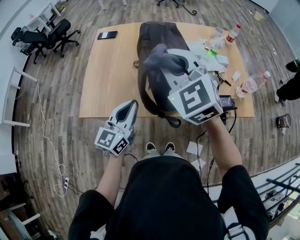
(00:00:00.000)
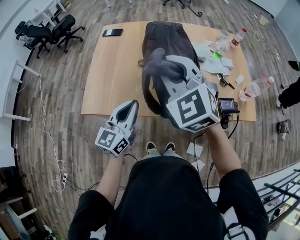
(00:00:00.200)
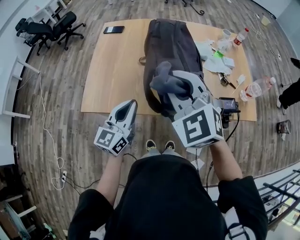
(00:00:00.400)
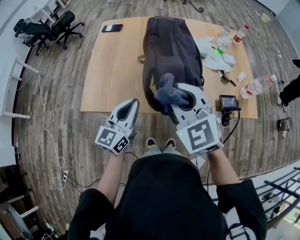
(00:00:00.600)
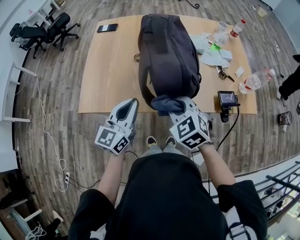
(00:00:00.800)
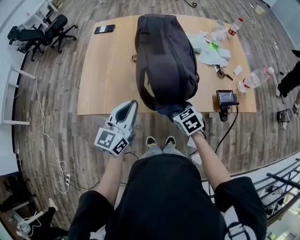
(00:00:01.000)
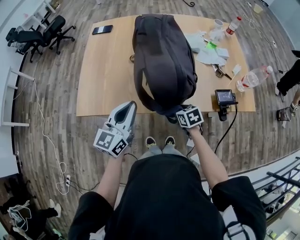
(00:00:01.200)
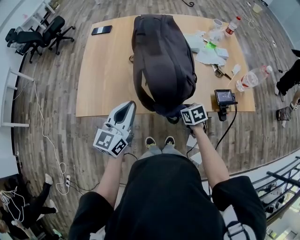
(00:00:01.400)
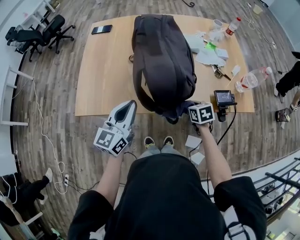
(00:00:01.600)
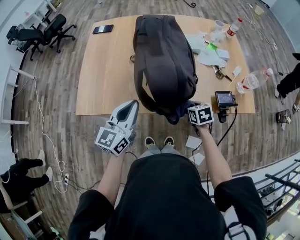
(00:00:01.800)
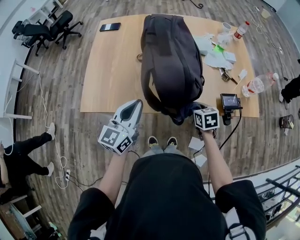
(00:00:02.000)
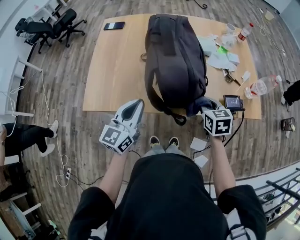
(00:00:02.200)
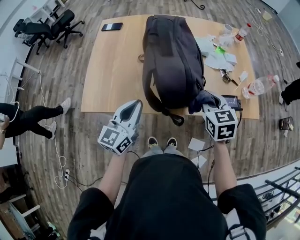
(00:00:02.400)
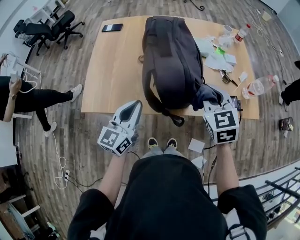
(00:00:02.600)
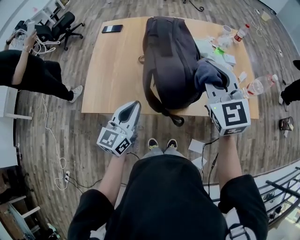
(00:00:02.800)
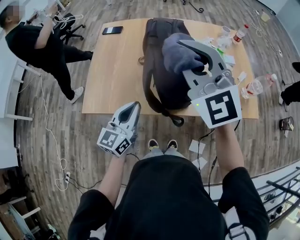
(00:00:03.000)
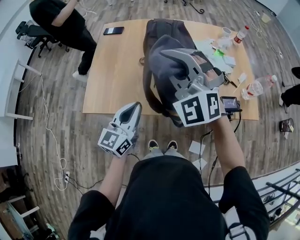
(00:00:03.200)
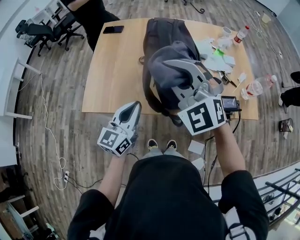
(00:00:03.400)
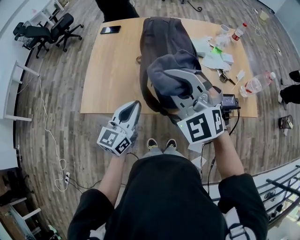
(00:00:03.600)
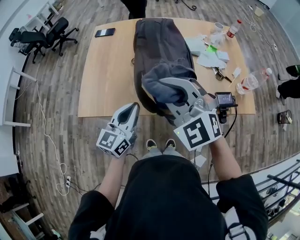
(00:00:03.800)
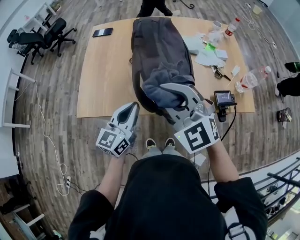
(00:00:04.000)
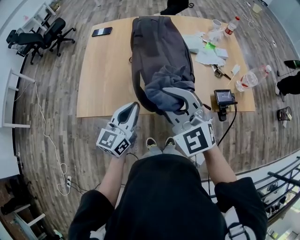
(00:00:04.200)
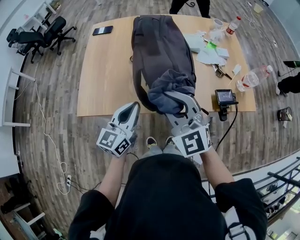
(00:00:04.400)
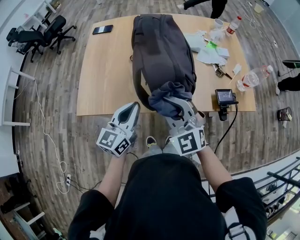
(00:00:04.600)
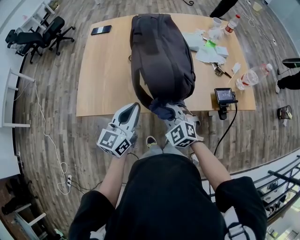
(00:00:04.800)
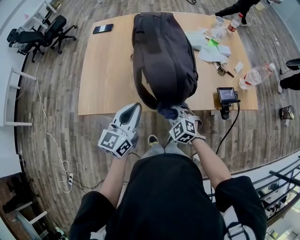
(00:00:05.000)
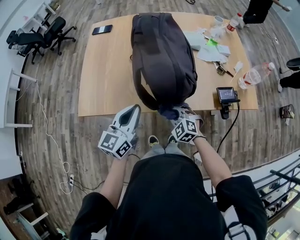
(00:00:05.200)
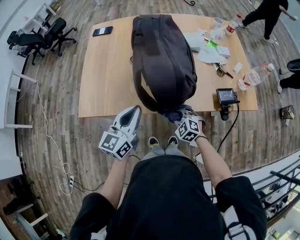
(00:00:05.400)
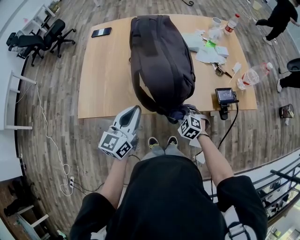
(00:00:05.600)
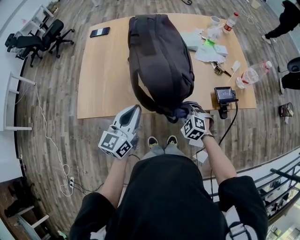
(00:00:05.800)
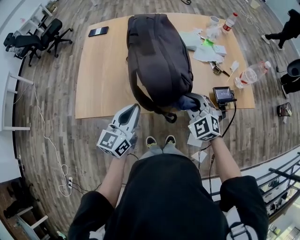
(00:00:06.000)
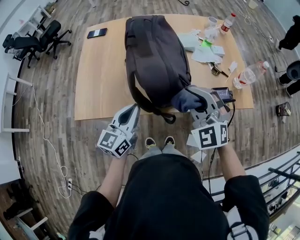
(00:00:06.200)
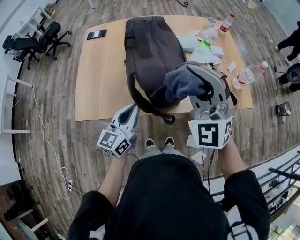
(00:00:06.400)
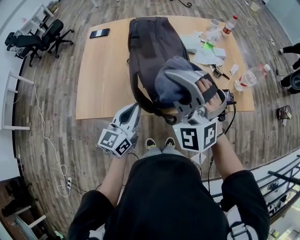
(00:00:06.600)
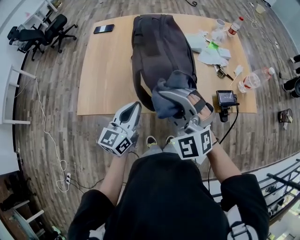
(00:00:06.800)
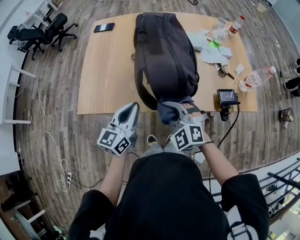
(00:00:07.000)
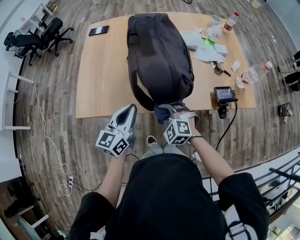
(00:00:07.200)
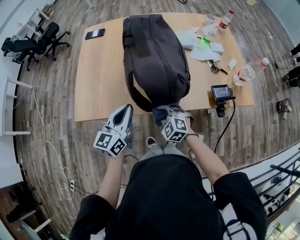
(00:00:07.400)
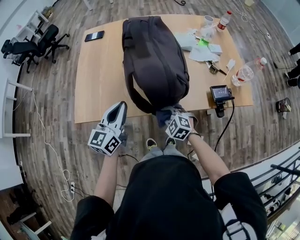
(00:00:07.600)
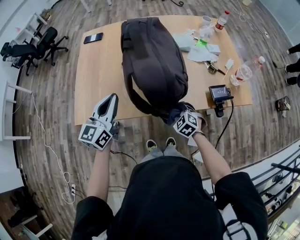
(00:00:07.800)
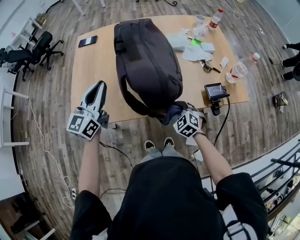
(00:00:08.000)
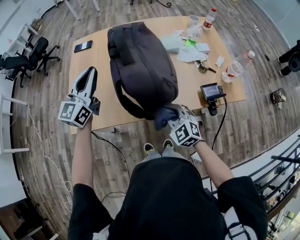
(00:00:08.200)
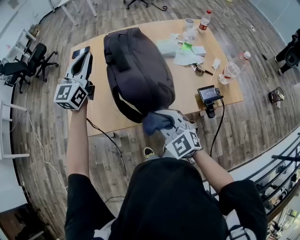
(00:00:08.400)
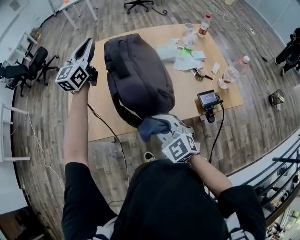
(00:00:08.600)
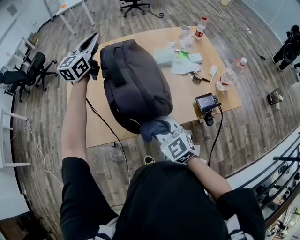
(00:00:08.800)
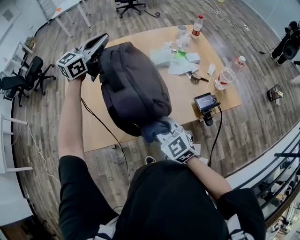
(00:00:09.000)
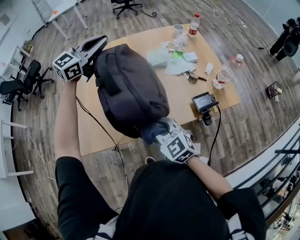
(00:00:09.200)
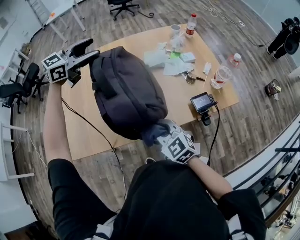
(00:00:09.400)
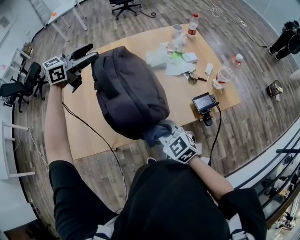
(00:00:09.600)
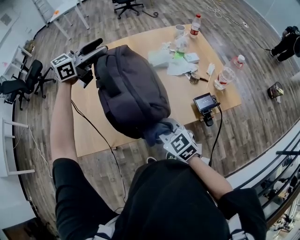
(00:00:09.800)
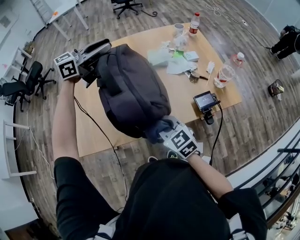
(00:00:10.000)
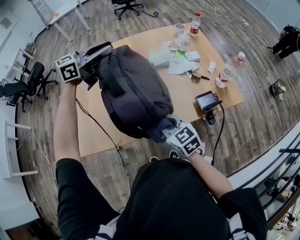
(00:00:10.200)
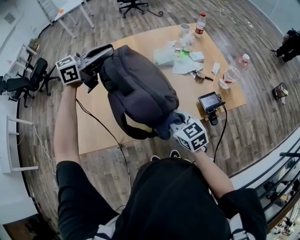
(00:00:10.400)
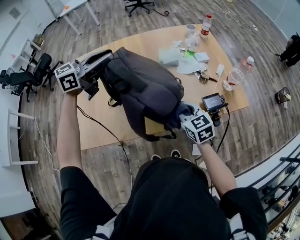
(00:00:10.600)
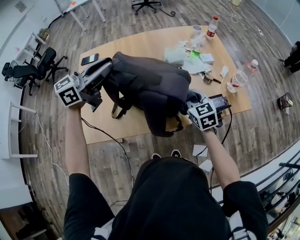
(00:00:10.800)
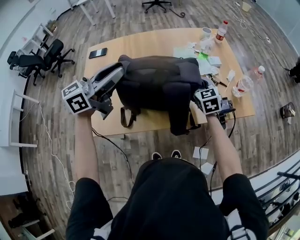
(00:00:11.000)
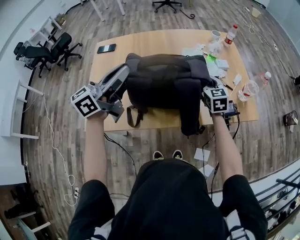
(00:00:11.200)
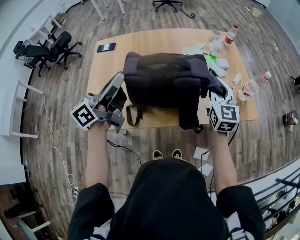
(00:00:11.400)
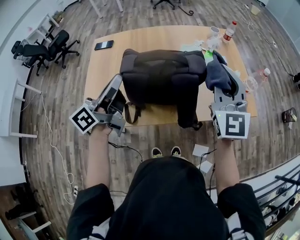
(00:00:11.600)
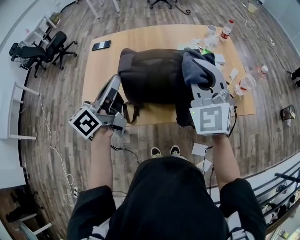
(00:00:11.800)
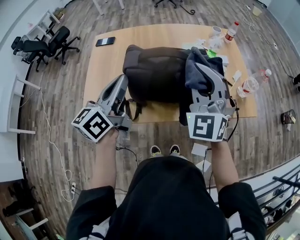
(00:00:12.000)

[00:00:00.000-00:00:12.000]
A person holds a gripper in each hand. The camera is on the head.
00:00:00.000 to 00:00:01.600: The right gripper goes about 40 cm downward and to the right, and points its fingers some 40 degrees further downward.
00:00:01.600 to 00:00:03.000: The right gripper shifts roughly 40 cm upward, and points its fingers some 50 degrees further upward.
00:00:03.000 to 00:00:04.400: The right gripper shifts roughly 15 cm downward and backward.
00:00:04.400 to 00:00:06.000: The right gripper is displaced downward and to the right by roughly 20 cm, and swivels approximately 30 degrees.
00:00:06.000 to 00:00:07.600: The right gripper heads downward and to the left, covering roughly 15 cm, and rotates roughly 20 degrees.
00:00:07.600 to 00:00:09.000: The left gripper heads forward and upward, covering about 35 cm, and swivels some 30 degrees. Meanwhile the right gripper travels upward by some 20 cm, and turns by approximately 30 degrees.
00:00:09.000 to 00:00:10.400: The left gripper moves roughly 5 cm, turns by about 20 degrees, and opens its fingers. Meanwhile the right gripper changes place by about 5 cm, and swivels some 20 degrees.
00:00:10.400 to 00:00:12.000: The left gripper goes roughly 20 cm backward, changes its angle by about 50 degrees, and closes. Meanwhile the right gripper shifts about 20 cm upward, and rotates around the line of its fingers by roughly 50 degrees, counterclockwise from behind.

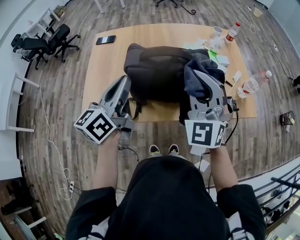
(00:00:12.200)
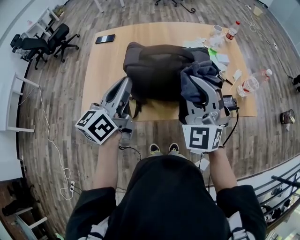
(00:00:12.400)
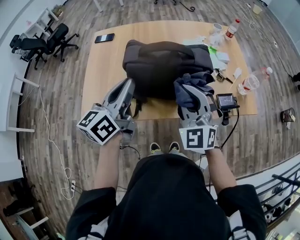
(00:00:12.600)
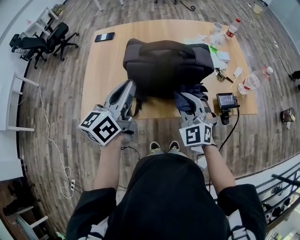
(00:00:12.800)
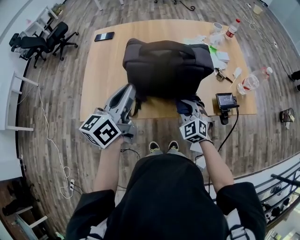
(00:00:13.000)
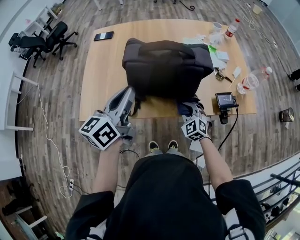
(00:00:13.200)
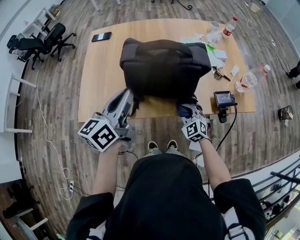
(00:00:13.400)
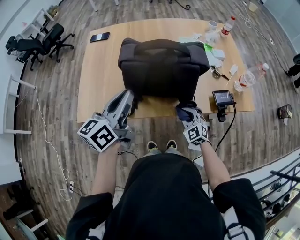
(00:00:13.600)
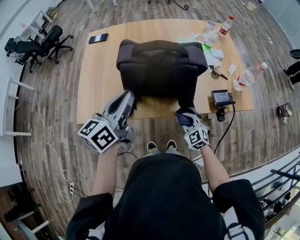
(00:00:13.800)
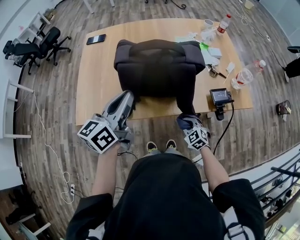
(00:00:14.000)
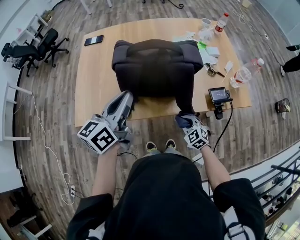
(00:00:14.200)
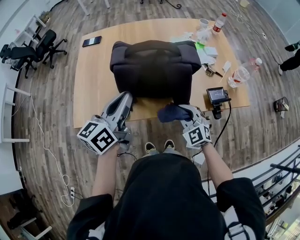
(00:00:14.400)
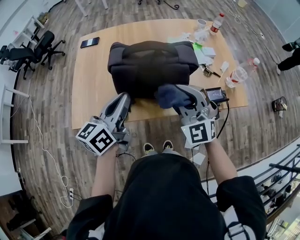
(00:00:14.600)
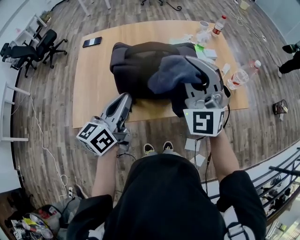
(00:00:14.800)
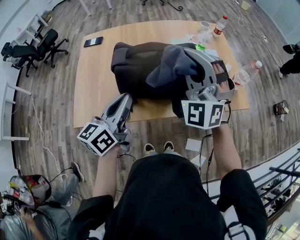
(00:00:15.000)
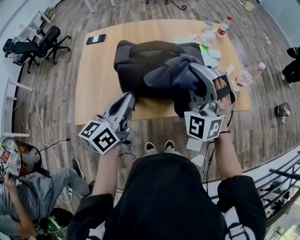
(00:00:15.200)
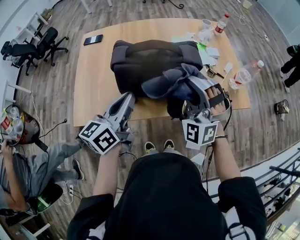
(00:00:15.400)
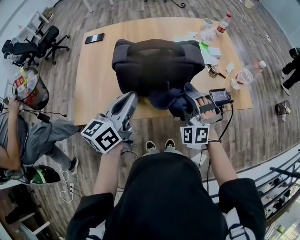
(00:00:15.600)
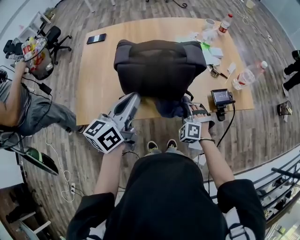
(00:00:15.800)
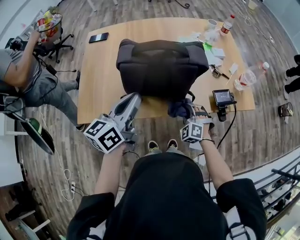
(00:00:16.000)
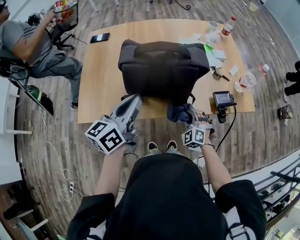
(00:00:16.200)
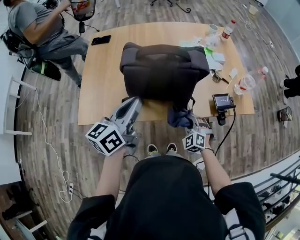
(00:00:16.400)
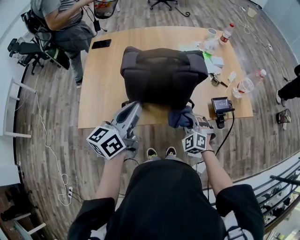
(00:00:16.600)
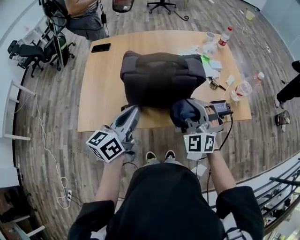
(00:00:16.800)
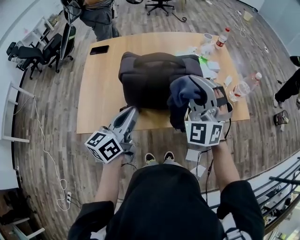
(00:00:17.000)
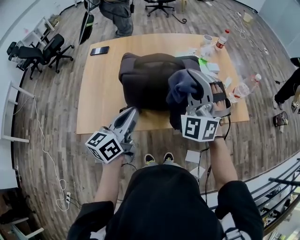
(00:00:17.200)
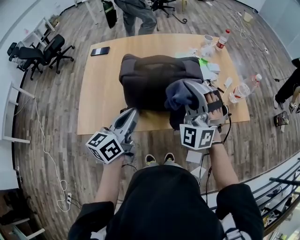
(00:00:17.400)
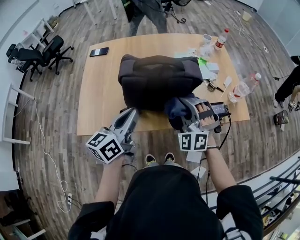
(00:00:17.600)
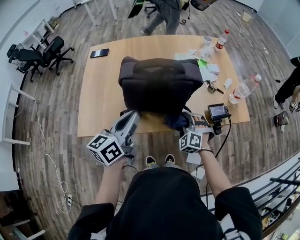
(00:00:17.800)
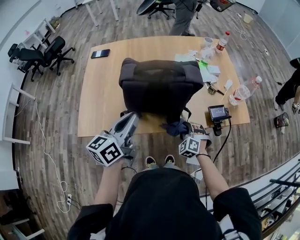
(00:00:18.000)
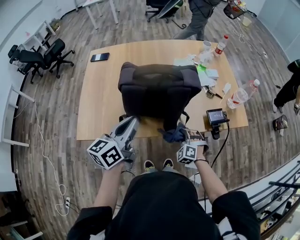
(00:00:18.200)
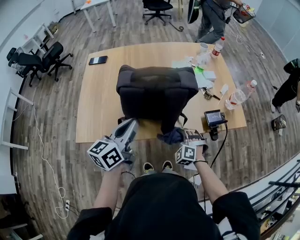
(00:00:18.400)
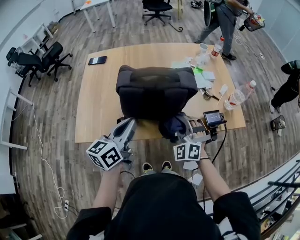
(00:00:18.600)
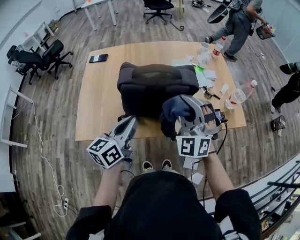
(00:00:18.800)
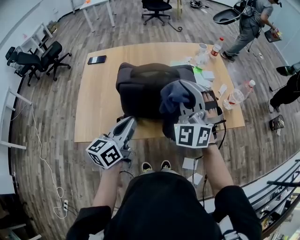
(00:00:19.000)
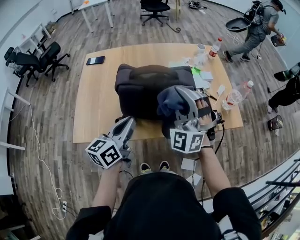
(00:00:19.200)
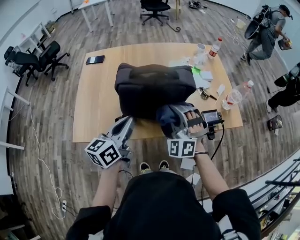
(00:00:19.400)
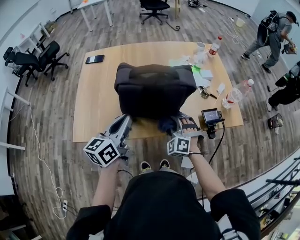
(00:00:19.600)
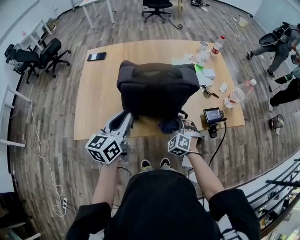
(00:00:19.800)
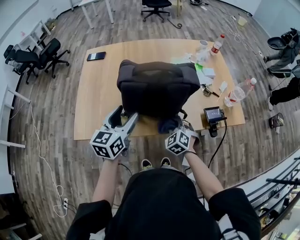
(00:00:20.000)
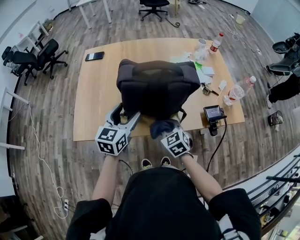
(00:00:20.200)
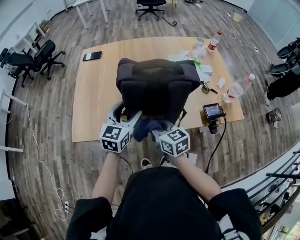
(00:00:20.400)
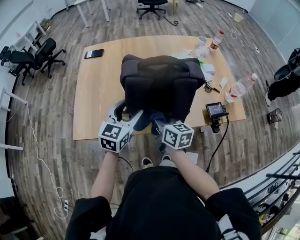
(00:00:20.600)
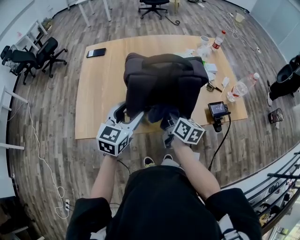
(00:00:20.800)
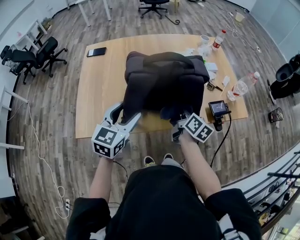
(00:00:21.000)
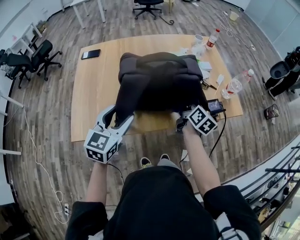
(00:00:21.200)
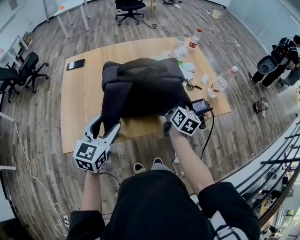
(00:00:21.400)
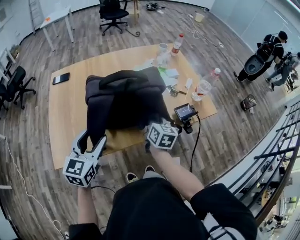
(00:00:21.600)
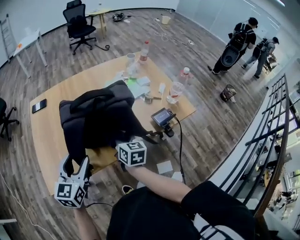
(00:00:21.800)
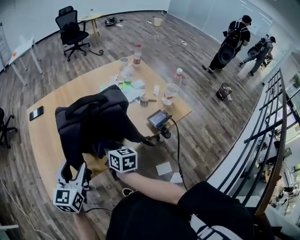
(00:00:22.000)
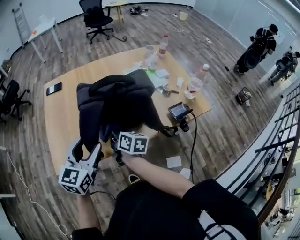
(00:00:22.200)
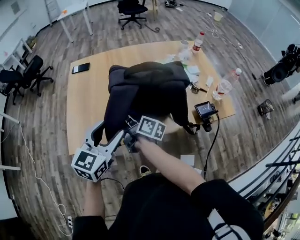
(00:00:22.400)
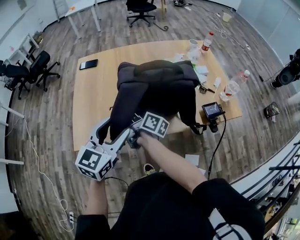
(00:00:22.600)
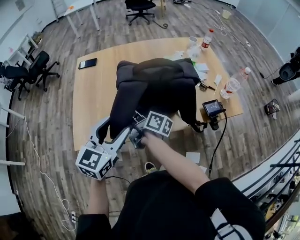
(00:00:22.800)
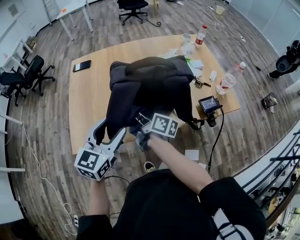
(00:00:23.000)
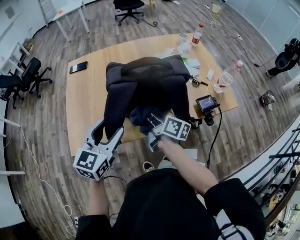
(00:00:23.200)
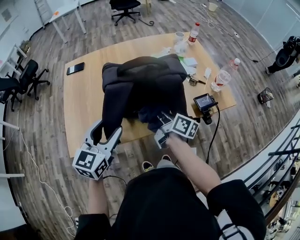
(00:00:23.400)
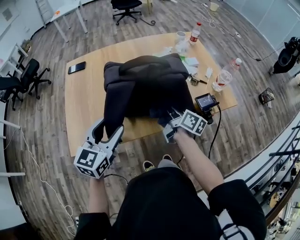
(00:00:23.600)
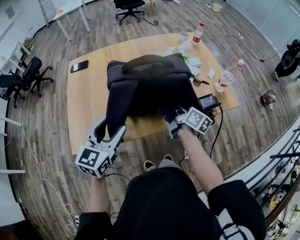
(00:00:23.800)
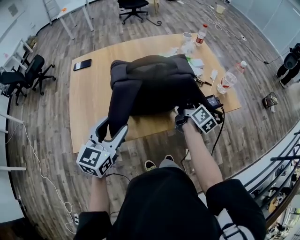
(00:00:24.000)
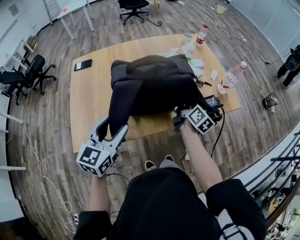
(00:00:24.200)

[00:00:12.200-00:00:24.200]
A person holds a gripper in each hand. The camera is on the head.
00:00:12.200 to 00:00:13.800: The left gripper moves downward, approximately 5 cm. The right gripper shifts about 35 cm downward, and angles its fingers downward, by some 30 degrees.
00:00:13.800 to 00:00:15.200: The right gripper moves upward, roughly 35 cm, and points its fingers some 40 degrees further upward.
00:00:15.200 to 00:00:16.600: The right gripper moves downward, approximately 30 cm, and angles its fingers downward, by some 40 degrees.
00:00:16.600 to 00:00:18.200: The right gripper goes upward and returns, roughly 30 cm each way.
00:00:18.200 to 00:00:19.800: The right gripper travels upward and back again, roughly 40 cm each way.
00:00:19.800 to 00:00:21.200: The left gripper turns by about 30 degrees, and opens its fingers. Meanwhile the right gripper shifts some 10 cm upward, and rolls clockwise, seen from behind, by roughly 100 degrees.
00:00:21.200 to 00:00:22.600: The right gripper moves to the left, about 30 cm, and changes its angle by some 50 degrees. Meanwhile the left gripper shifts by roughly 5 cm.
00:00:22.600 to 00:00:24.200: The right gripper is displaced to the right by roughly 30 cm, and rotates some 40 degrees.
